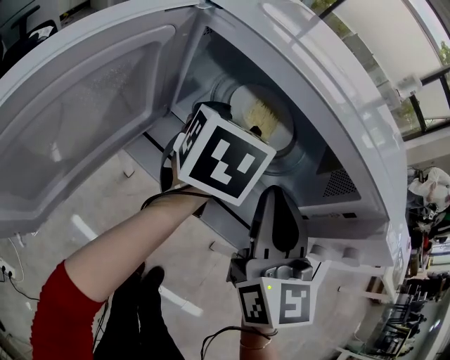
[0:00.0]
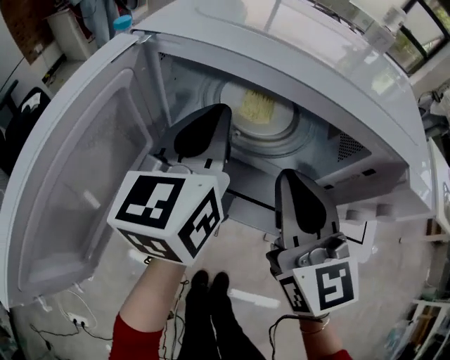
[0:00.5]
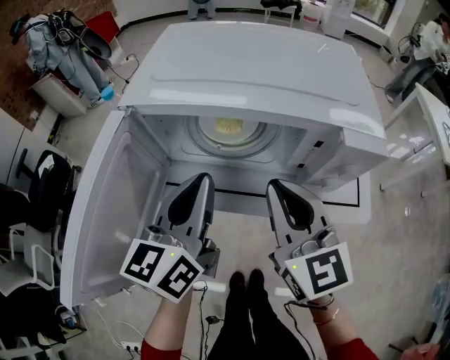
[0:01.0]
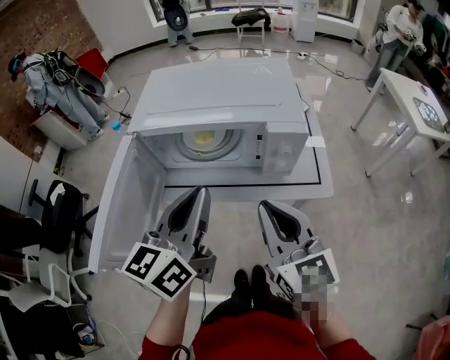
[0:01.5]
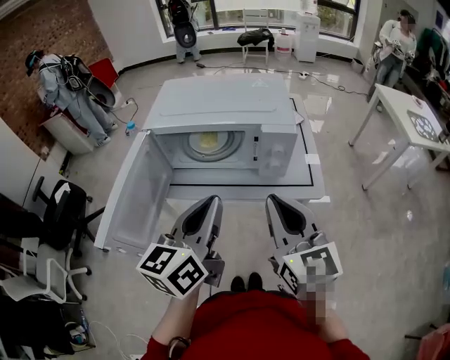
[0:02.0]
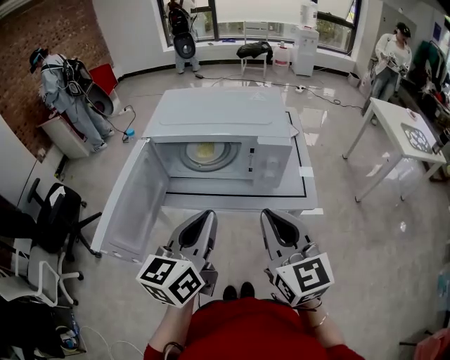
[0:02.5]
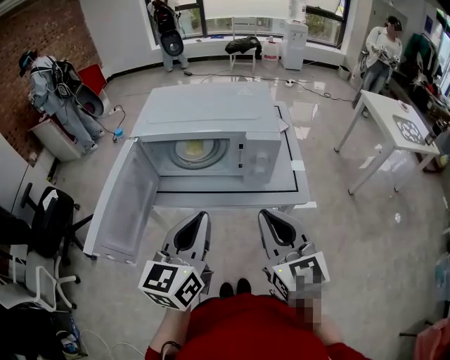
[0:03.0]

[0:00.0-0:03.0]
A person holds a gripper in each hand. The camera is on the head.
0:00.0 to 0:01.5: The left gripper heads backward and upward, covering roughly 30 cm, swivels some 30 degrees, and closes. Meanwhile the right gripper is displaced backward and upward by about 20 cm.
0:01.5 to 0:03.0: The left gripper is displaced backward by about 5 cm. The right gripper shifts by some 5 cm.

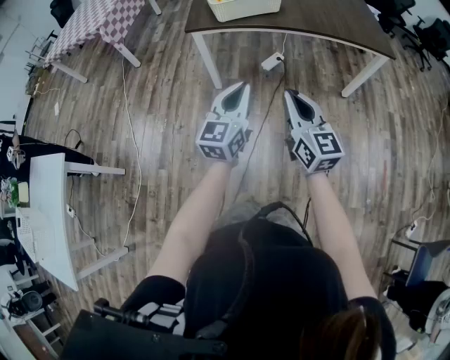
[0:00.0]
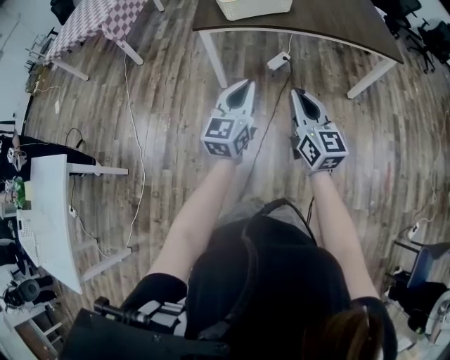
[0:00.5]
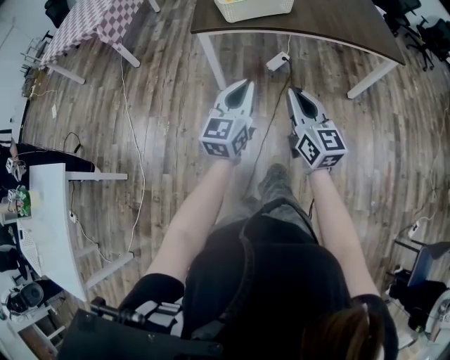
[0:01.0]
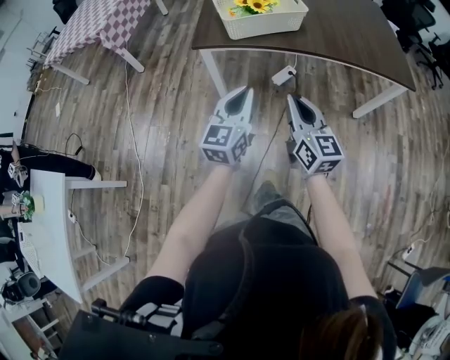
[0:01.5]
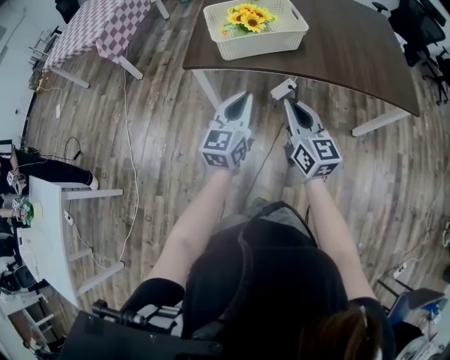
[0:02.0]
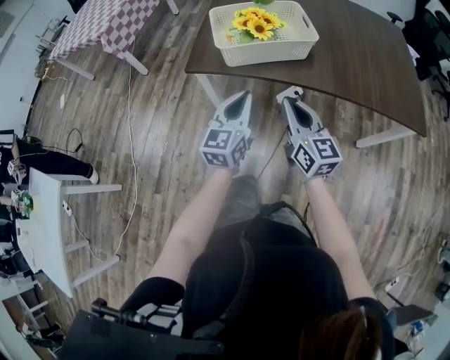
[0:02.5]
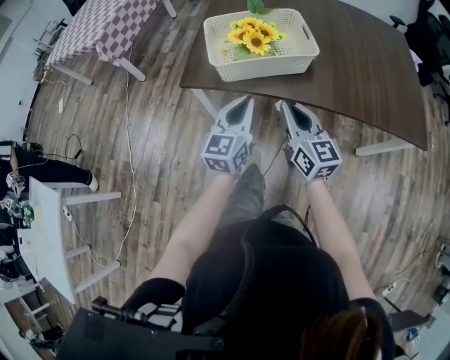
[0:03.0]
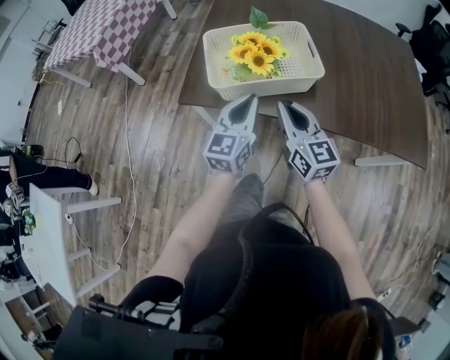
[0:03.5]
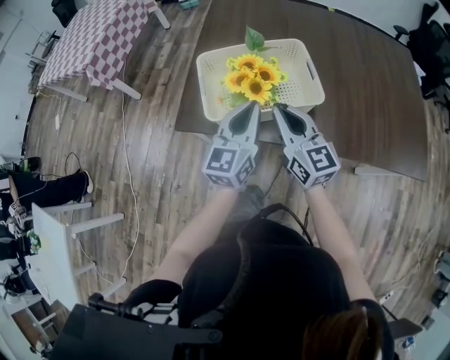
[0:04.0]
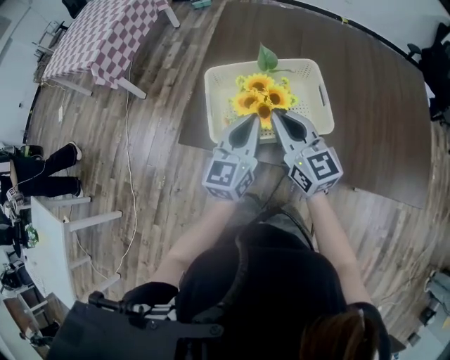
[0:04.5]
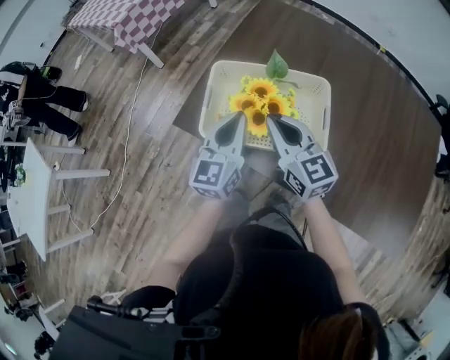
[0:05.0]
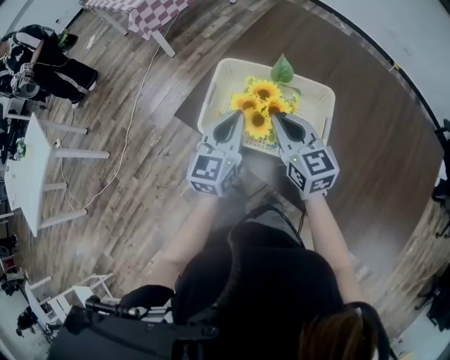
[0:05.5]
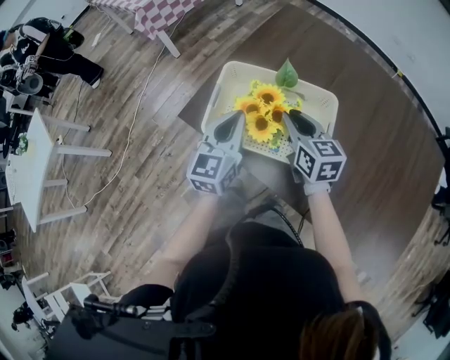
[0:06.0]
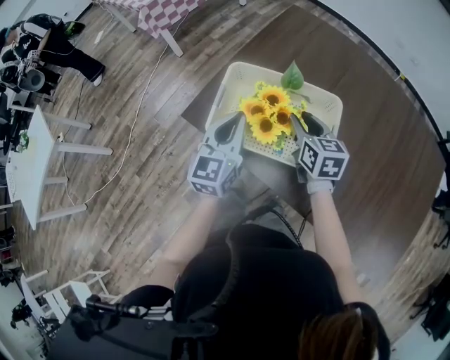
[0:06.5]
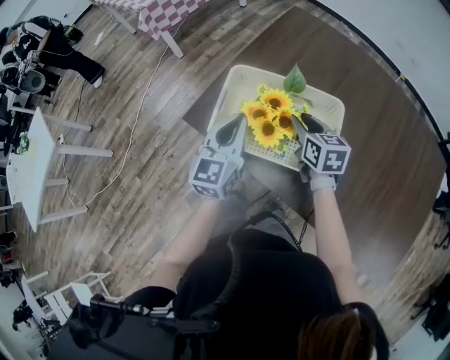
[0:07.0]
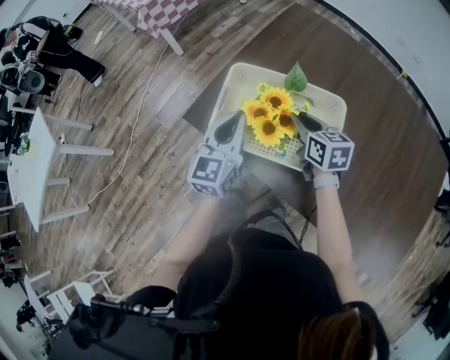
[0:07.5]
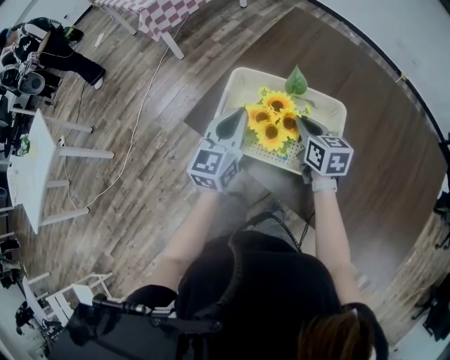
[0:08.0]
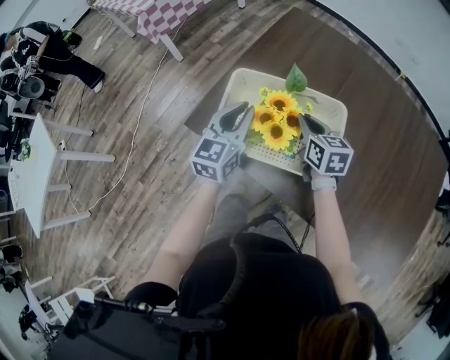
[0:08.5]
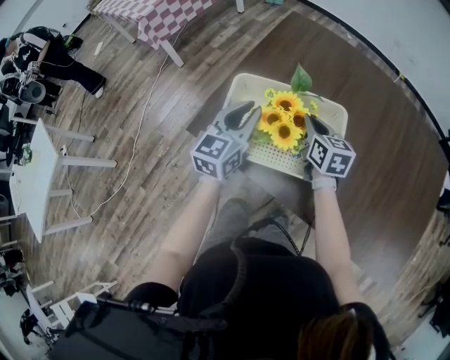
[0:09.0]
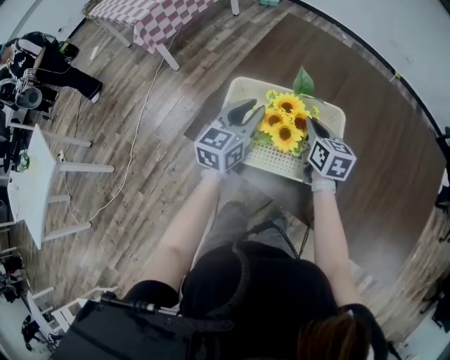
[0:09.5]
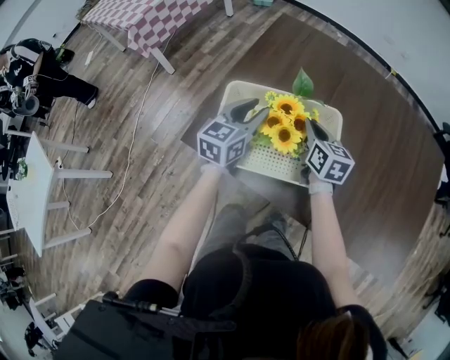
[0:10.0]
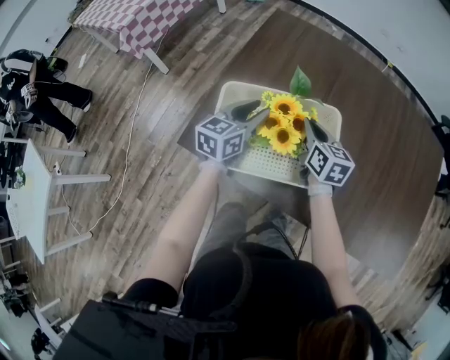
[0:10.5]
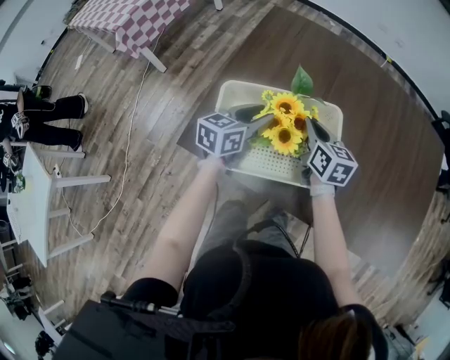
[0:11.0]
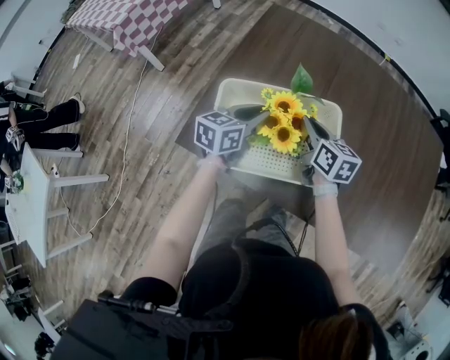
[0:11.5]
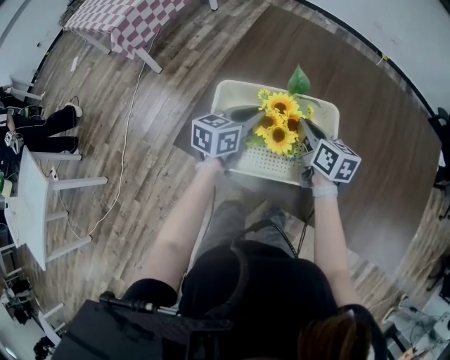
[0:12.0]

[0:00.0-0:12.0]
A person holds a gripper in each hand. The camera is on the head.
0:00.0 to 0:02.0: The grippers both shift forward by approximately 25 cm.
0:02.0 to 0:04.0: The two grippers go roughly 25 cm forward.
0:04.0 to 0:06.0: The left gripper moves approximately 10 cm, and rotates approximately 30 degrees; the right gripper shifts by roughly 15 cm, and changes its angle by roughly 30 degrees.
0:06.0 to 0:08.0: The grippers stay close to where they were, moving slightly.
0:08.0 to 0:10.0: The right gripper ends up approximately 5 cm from where it was, while the left gripper travels forward and to the right by about 10 cm, swivels approximately 20 degrees, and opens its fingers.
0:10.0 to 0:12.0: The left gripper closes up.

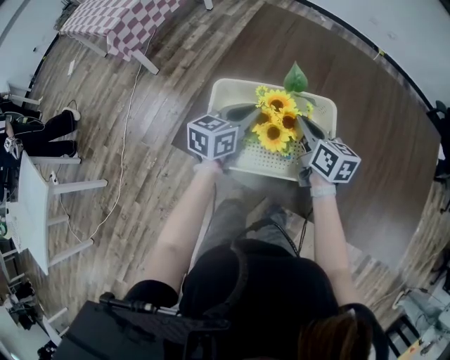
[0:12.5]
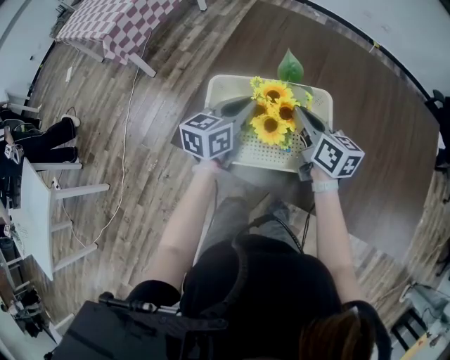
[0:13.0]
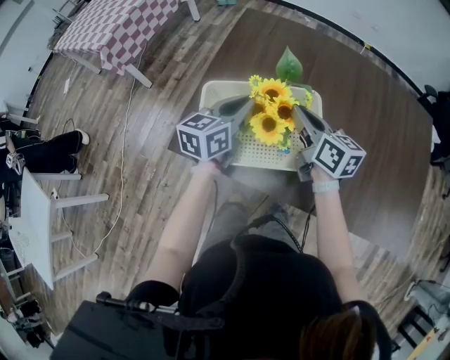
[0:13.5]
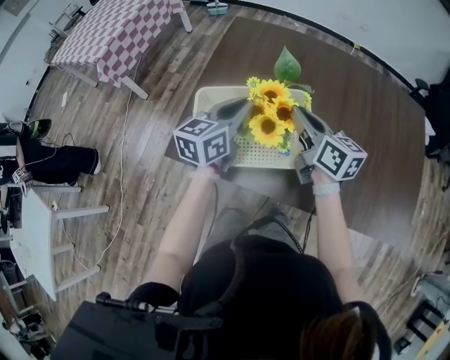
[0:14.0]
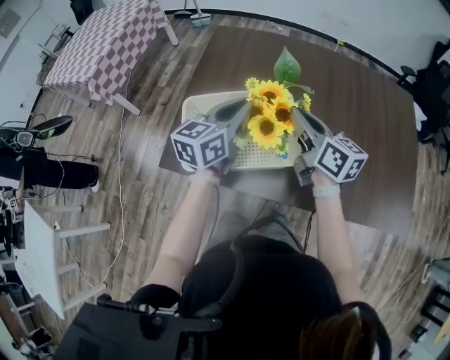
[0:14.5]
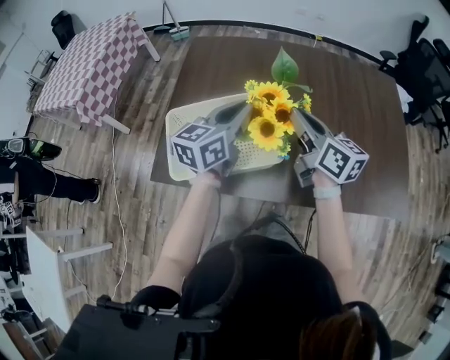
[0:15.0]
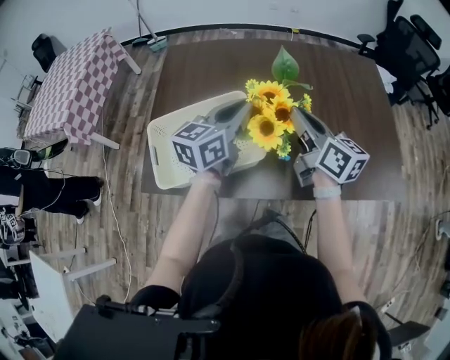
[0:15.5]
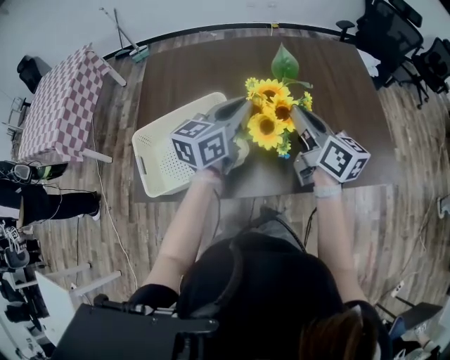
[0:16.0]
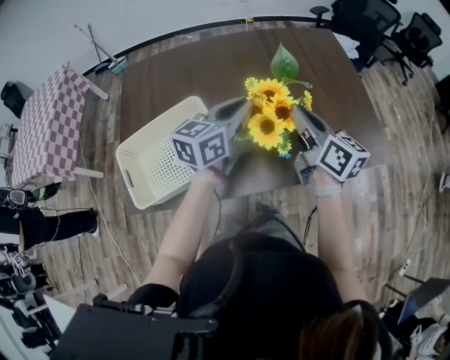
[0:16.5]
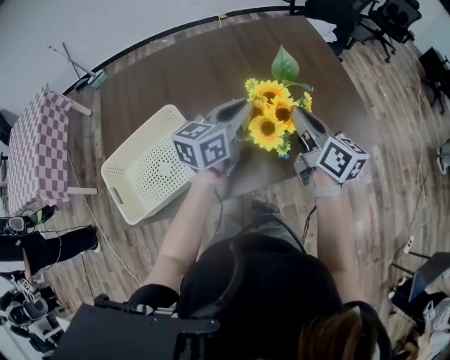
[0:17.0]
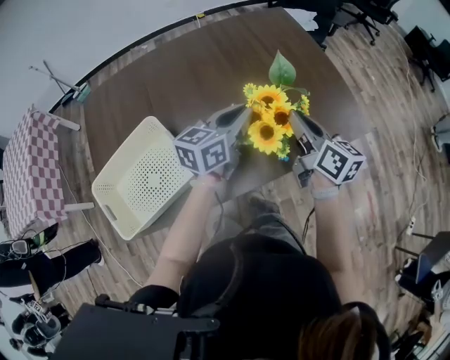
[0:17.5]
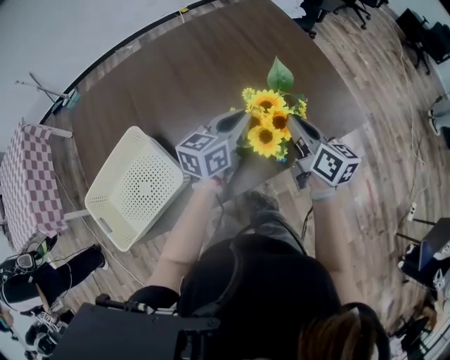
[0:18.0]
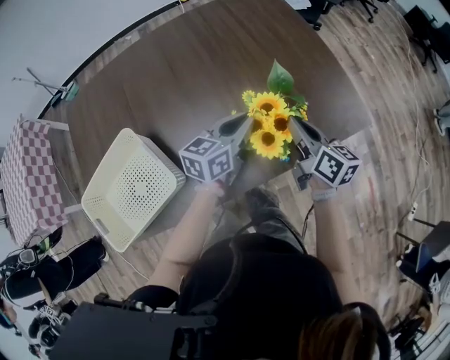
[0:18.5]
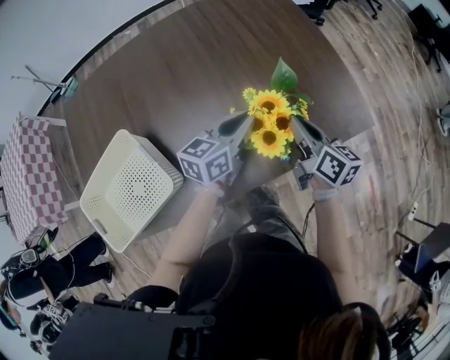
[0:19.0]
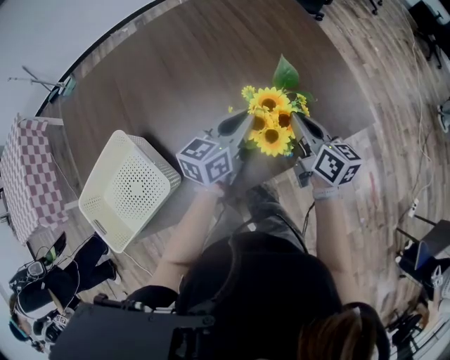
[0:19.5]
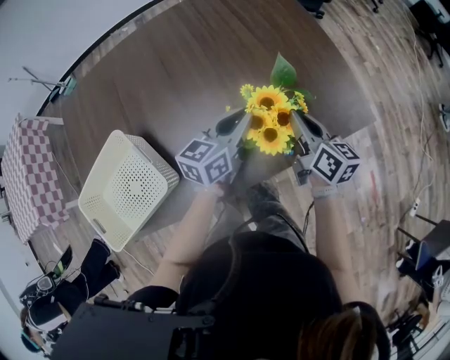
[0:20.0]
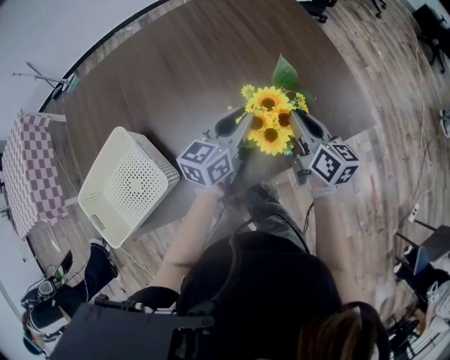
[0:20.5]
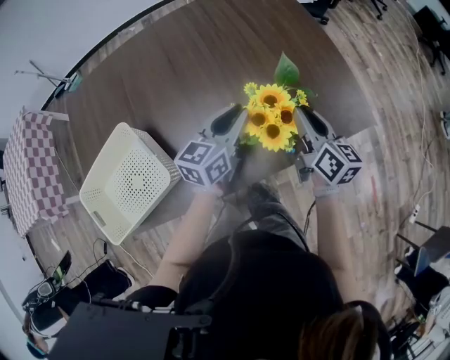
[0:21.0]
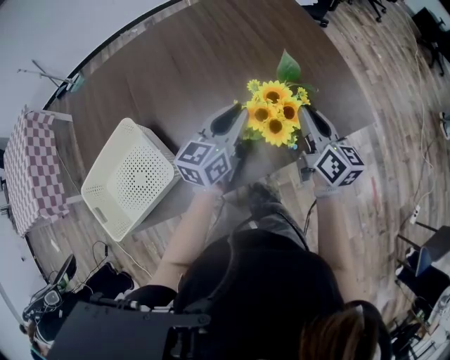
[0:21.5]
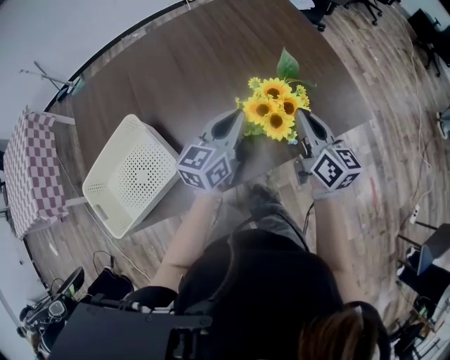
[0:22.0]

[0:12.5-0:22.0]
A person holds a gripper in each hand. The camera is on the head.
0:12.5 to 0:14.5: The grippers both shift upward and to the right by about 15 cm.
0:14.5 to 0:16.5: The right gripper changes place by roughly 20 cm, and rotates roughly 30 degrees; the left gripper ends up about 20 cm from where it was, and swivels approximately 30 degrees.
0:16.5 to 0:18.0: Both grippers travel together to the right and downward, some 20 cm.
0:18.0 to 0:20.0: The right gripper shifts some 5 cm downward.
0:20.0 to 0:22.0: The left gripper changes place by about 5 cm. Meanwhile the right gripper goes approximately 5 cm upward.

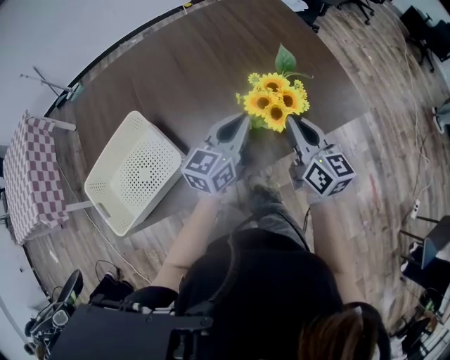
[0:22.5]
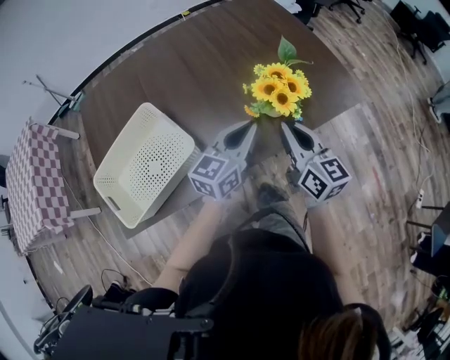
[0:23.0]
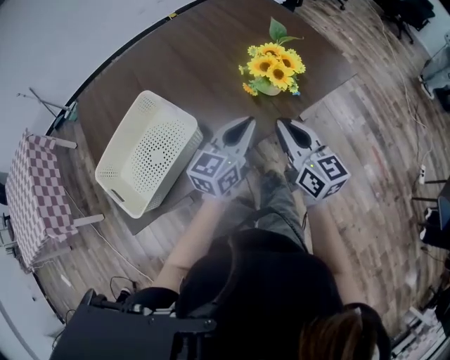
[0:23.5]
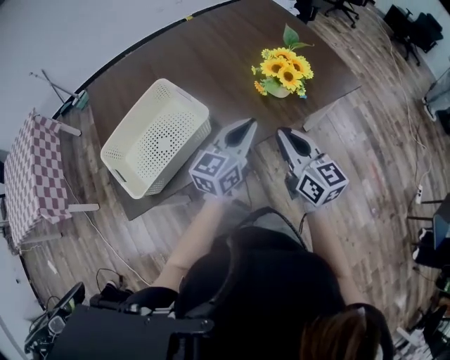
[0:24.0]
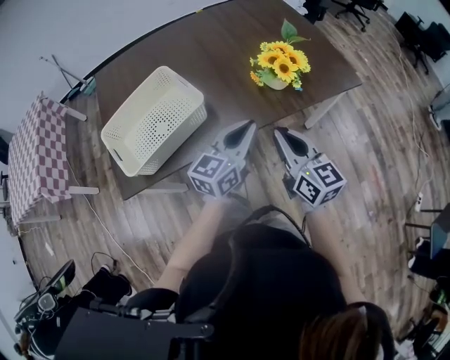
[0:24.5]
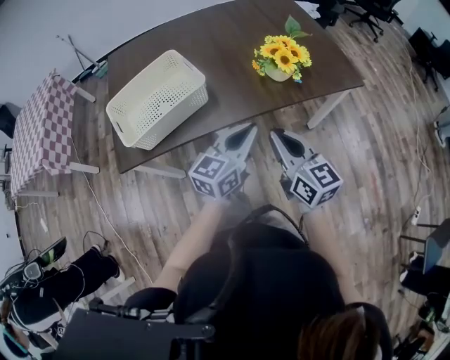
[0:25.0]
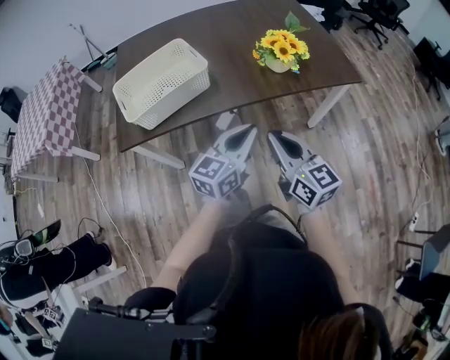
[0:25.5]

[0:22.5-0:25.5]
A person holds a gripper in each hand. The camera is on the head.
0:22.5 to 0:24.0: The right gripper travels backward and to the left by about 20 cm. Meanwhile the left gripper heads backward, covering about 15 cm.
0:24.0 to 0:25.5: The grippers both shift backward by roughly 15 cm.
